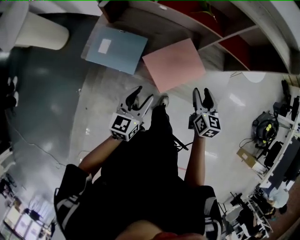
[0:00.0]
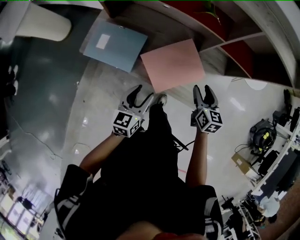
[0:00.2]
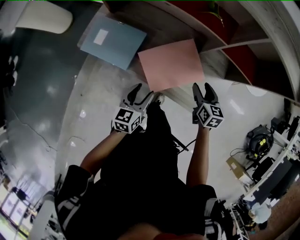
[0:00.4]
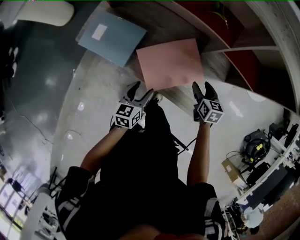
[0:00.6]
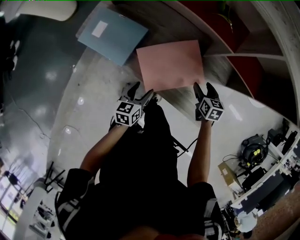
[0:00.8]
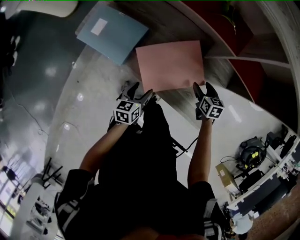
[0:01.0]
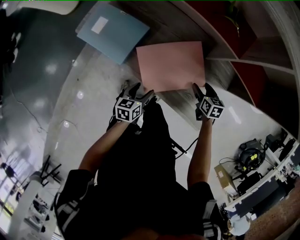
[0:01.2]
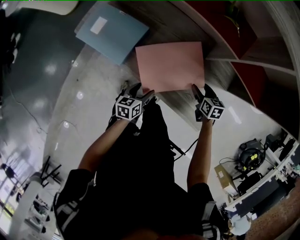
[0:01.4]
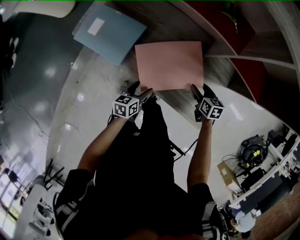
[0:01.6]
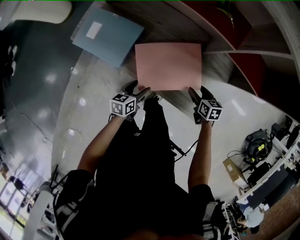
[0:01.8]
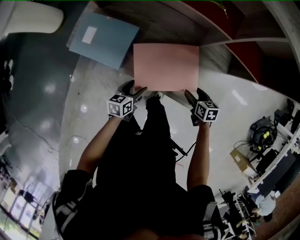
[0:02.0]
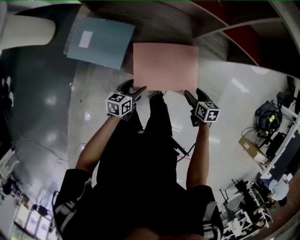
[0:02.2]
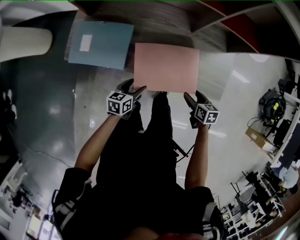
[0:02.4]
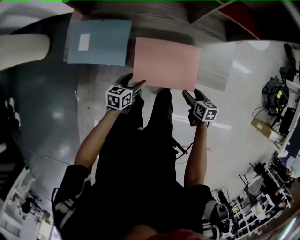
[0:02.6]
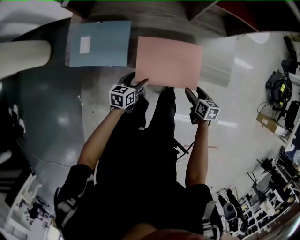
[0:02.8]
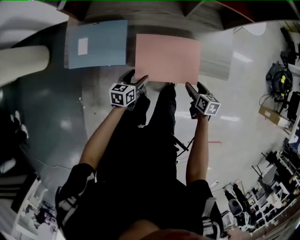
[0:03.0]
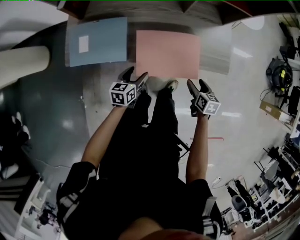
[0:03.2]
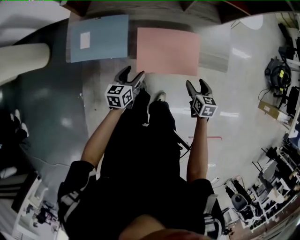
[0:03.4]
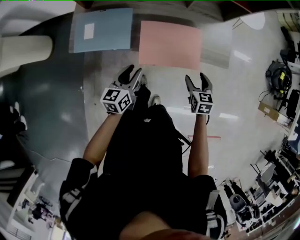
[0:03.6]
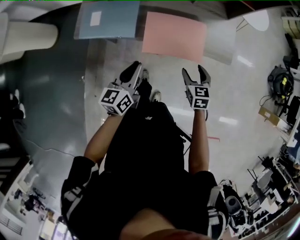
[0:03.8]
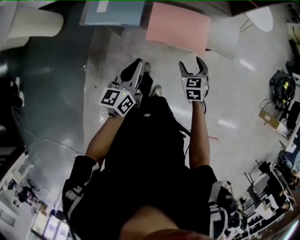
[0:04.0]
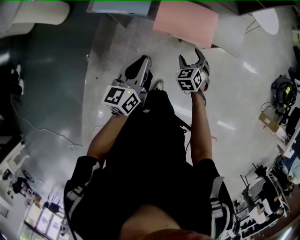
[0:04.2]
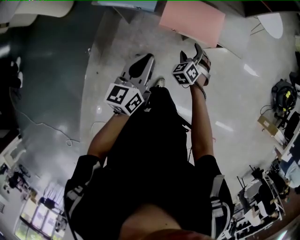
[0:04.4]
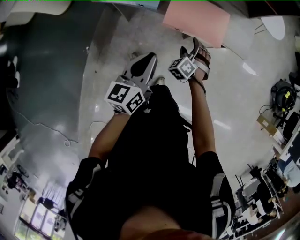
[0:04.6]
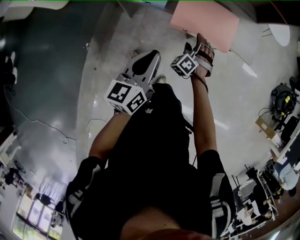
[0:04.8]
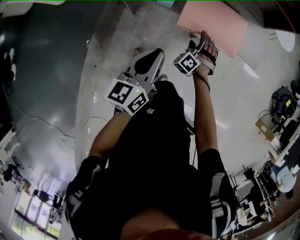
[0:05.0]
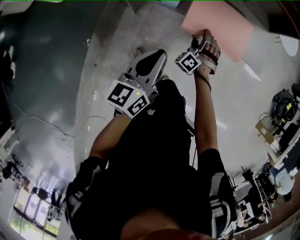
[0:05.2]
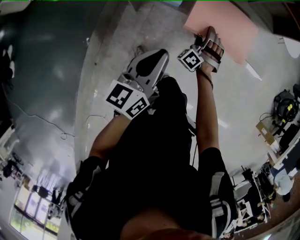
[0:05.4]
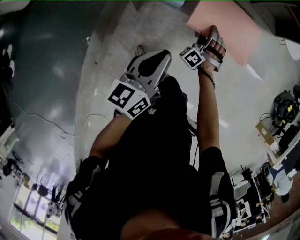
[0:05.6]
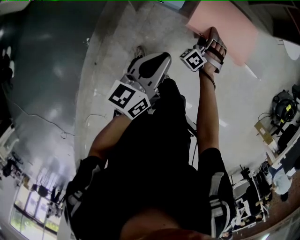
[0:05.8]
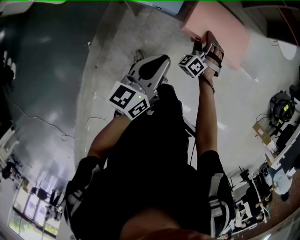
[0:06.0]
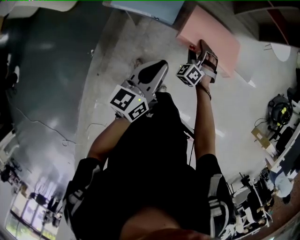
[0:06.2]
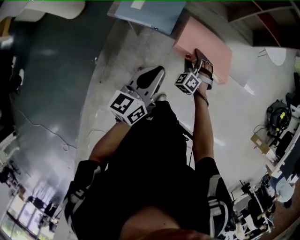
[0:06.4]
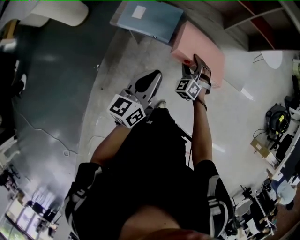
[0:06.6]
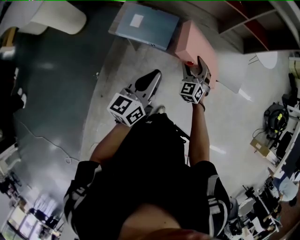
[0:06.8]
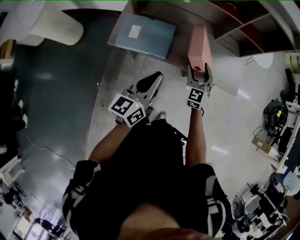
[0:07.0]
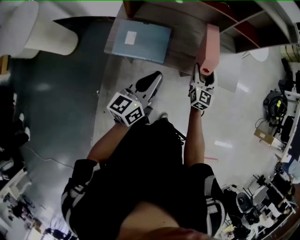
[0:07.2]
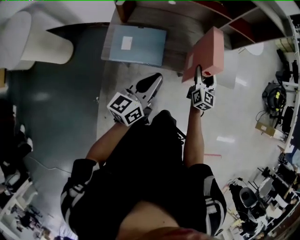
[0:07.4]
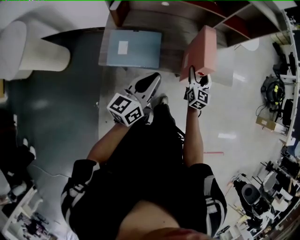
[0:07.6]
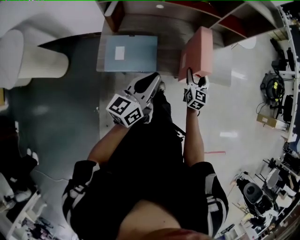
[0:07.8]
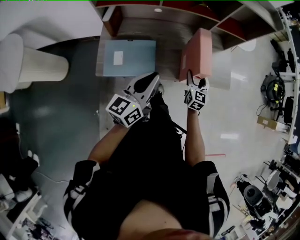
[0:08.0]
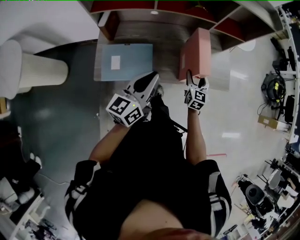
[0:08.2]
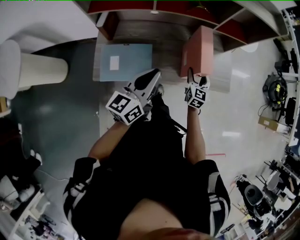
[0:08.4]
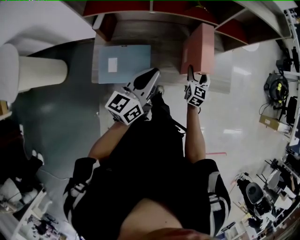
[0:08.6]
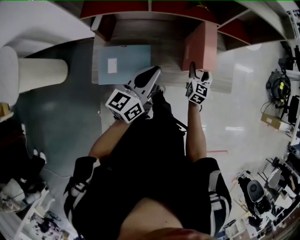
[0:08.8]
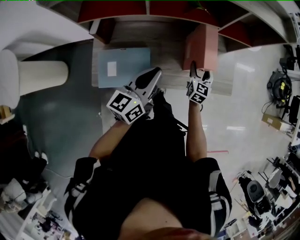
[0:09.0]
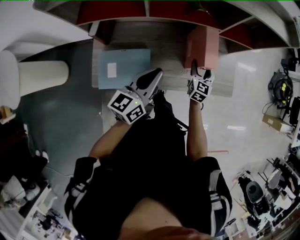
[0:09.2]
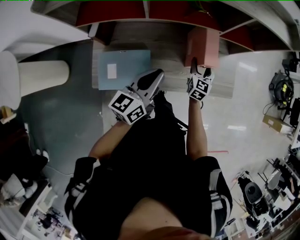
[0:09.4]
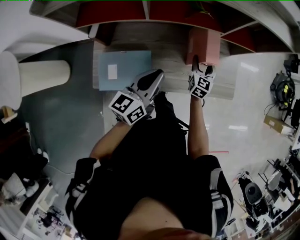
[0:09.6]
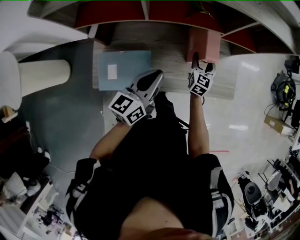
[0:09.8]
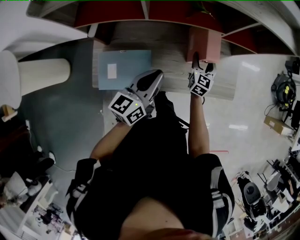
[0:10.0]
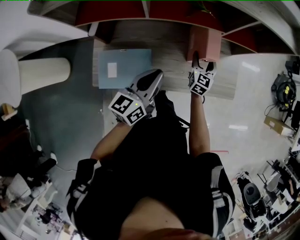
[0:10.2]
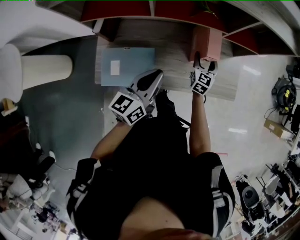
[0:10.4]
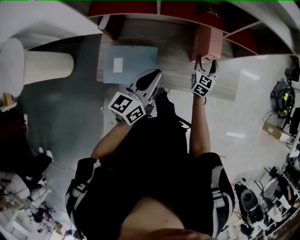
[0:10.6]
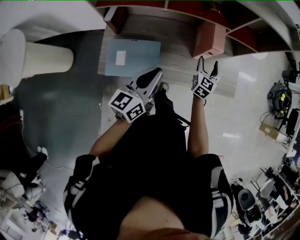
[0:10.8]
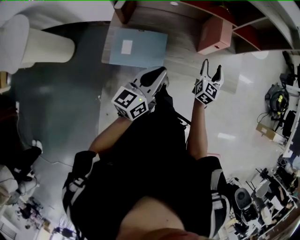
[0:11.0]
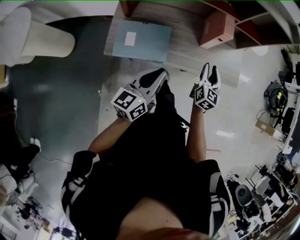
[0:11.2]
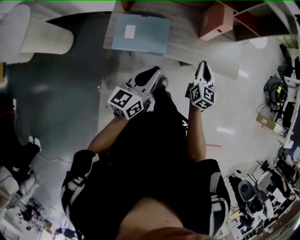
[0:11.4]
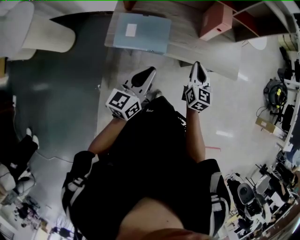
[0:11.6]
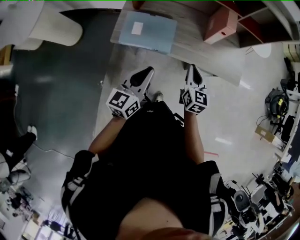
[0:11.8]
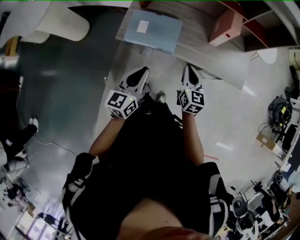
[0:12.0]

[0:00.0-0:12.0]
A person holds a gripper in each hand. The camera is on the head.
0:00.0 to 0:01.6: The two grippers go about 25 cm downward. The left gripper changes its angle by about 30 degrees, while the right gripper rotates approximately 30 degrees.
0:01.6 to 0:03.0: The left gripper moves about 10 cm, and swivels approximately 30 degrees. Meanwhile the right gripper changes place by about 25 cm, and turns by some 30 degrees.
0:03.0 to 0:04.4: The left gripper moves upward and backward, about 30 cm, turns by approximately 30 degrees, and closes up; the right gripper travels to the left and backward by about 15 cm, and twists some 70 degrees counterclockwise, seen from behind.
0:04.4 to 0:06.0: The right gripper moves to the left and forward, approximately 15 cm, and changes its angle by some 30 degrees. Meanwhile the left gripper heads to the left, covering approximately 10 cm.
0:06.0 to 0:07.6: The right gripper heads upward, covering roughly 20 cm, and twists approximately 80 degrees clockwise, seen from behind. Meanwhile the left gripper travels upward and forward by roughly 15 cm.
0:07.6 to 0:09.0: The grippers both shift forward by roughly 15 cm.
0:09.0 to 0:10.4: The right gripper is displaced forward by approximately 5 cm.
0:10.4 to 0:12.0: The grippers both shift backward by about 30 cm. The left gripper changes its angle by approximately 20 degrees. Meanwhile the right gripper swivels some 30 degrees, and closes its fingers.

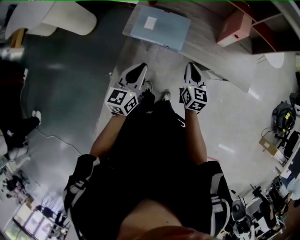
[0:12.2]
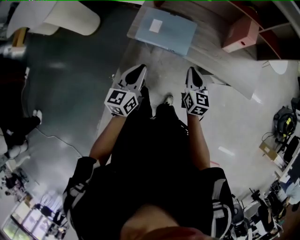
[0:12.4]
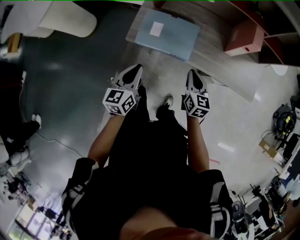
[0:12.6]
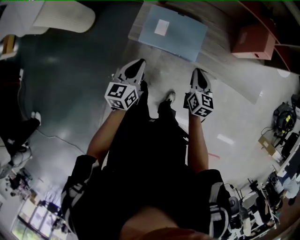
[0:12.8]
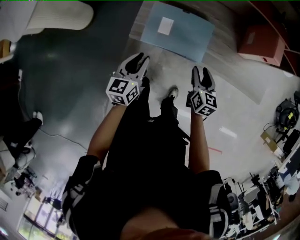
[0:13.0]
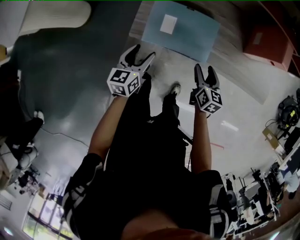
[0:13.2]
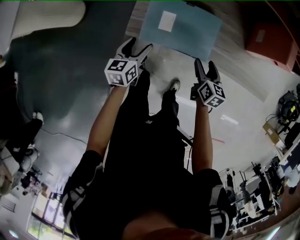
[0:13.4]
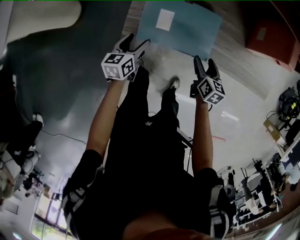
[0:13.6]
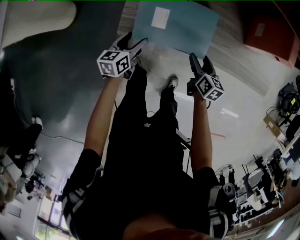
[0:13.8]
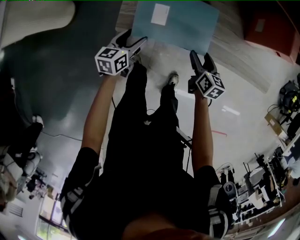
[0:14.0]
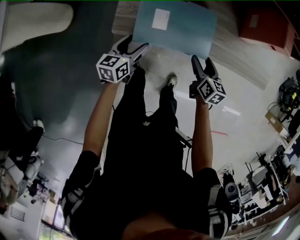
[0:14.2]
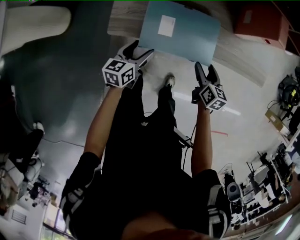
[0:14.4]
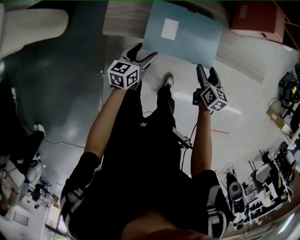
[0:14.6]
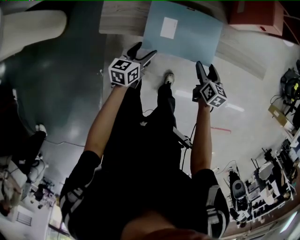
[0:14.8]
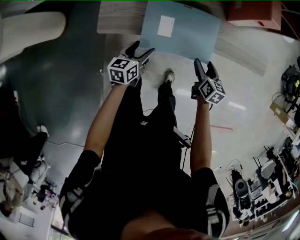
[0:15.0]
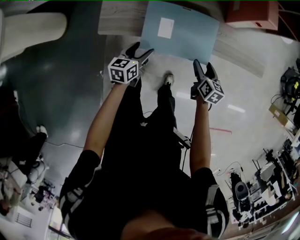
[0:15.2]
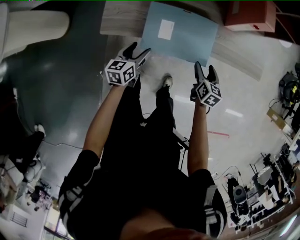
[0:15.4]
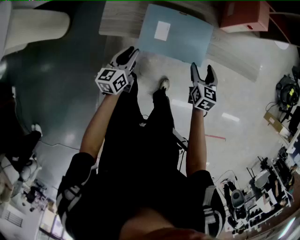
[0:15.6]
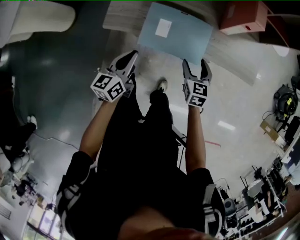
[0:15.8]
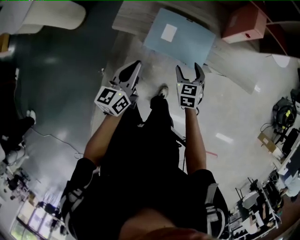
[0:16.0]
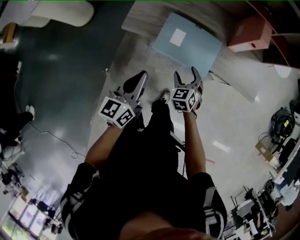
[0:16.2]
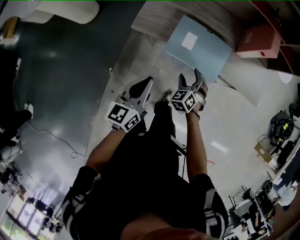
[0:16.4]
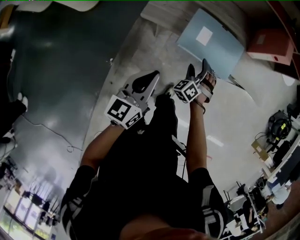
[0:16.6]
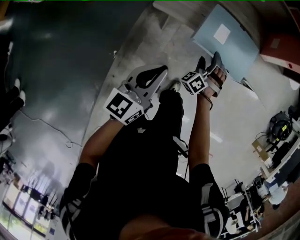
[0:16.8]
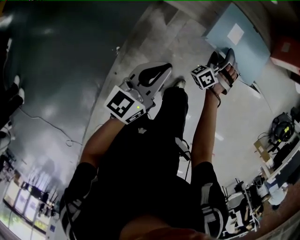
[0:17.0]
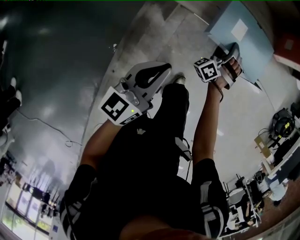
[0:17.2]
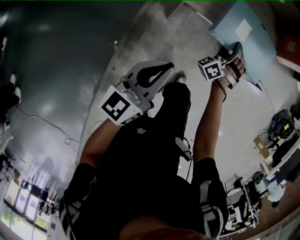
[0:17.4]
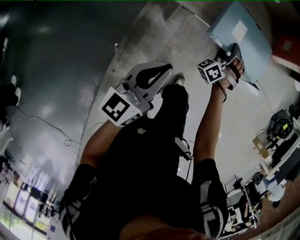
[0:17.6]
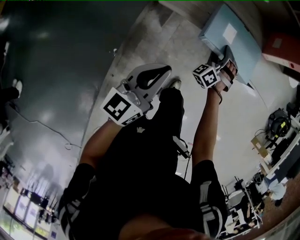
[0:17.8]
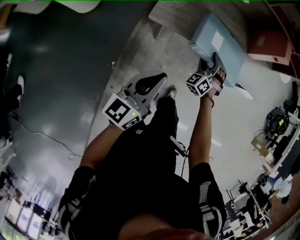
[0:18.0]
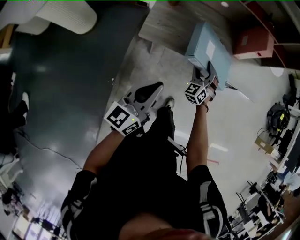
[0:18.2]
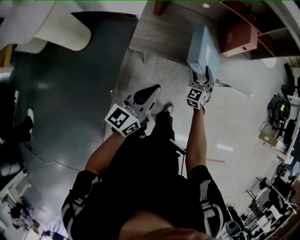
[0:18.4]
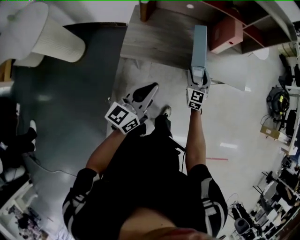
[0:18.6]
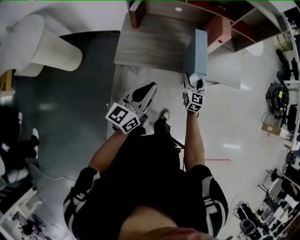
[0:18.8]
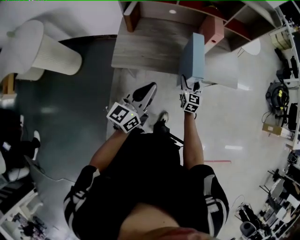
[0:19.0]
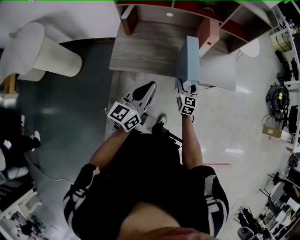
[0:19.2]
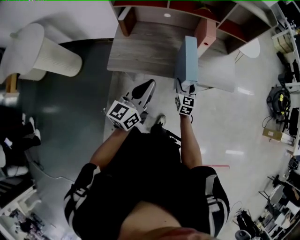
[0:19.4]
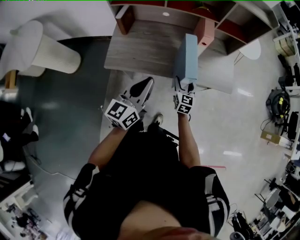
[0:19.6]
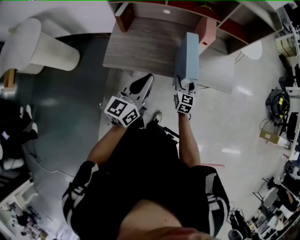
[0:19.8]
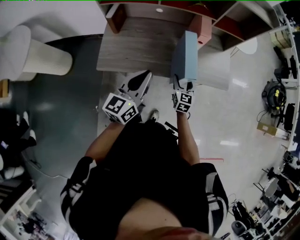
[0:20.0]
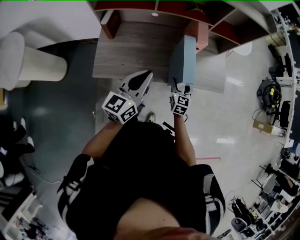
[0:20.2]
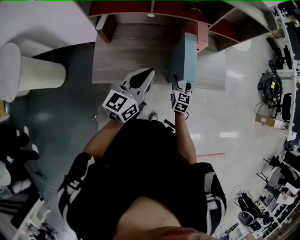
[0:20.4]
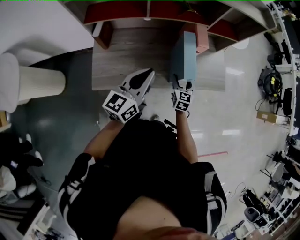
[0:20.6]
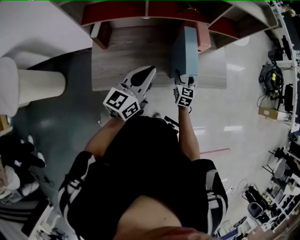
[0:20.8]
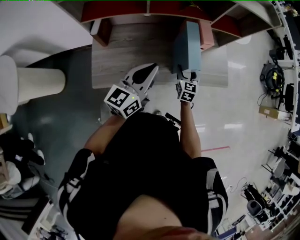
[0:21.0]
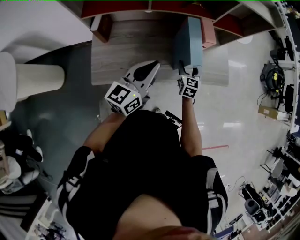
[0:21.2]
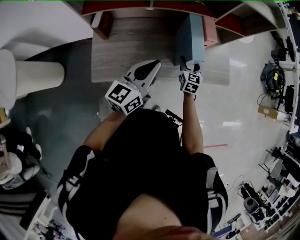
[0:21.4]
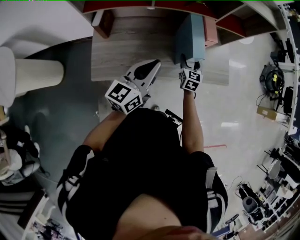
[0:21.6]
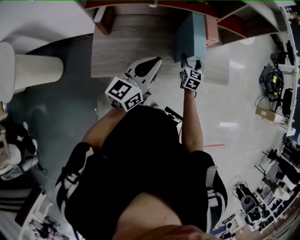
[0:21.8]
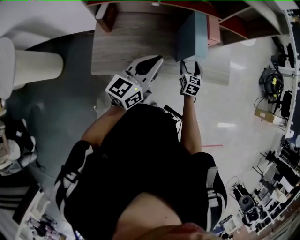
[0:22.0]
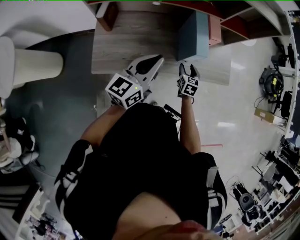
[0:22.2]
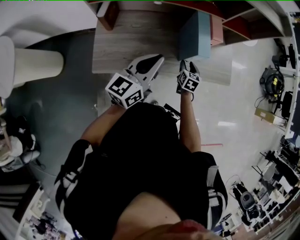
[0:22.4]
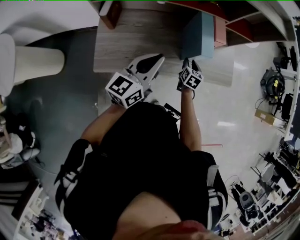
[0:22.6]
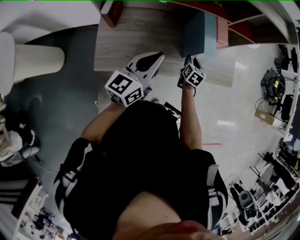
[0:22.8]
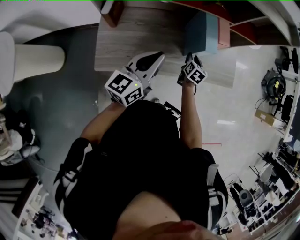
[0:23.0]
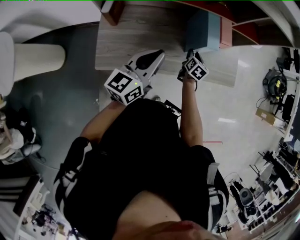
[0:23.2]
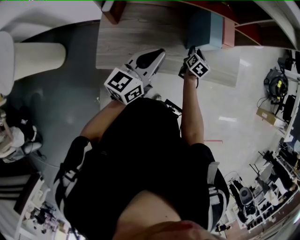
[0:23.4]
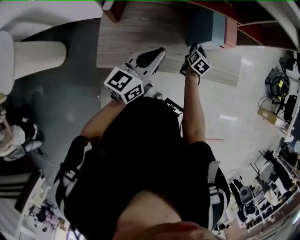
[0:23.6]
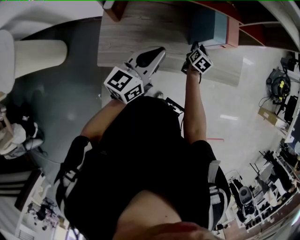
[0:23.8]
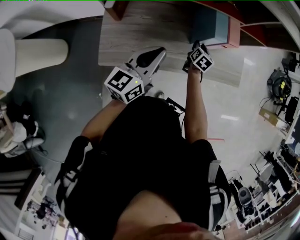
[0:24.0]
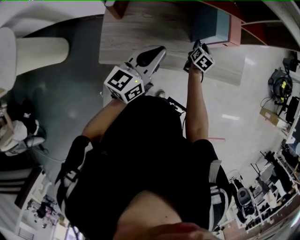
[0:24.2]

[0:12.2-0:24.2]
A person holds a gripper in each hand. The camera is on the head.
0:12.2 to 0:13.8: The left gripper goes about 35 cm downward, forward and to the left, turns by roughly 30 degrees, and opens its fingers, while the right gripper goes some 20 cm downward and forward, swivels some 30 degrees, and opens its fingers.
0:13.8 to 0:15.2: The two grippers go about 15 cm to the right.
0:15.2 to 0:16.6: The left gripper shifts roughly 25 cm upward and backward, swivels about 30 degrees, and closes up. Meanwhile the right gripper goes approximately 15 cm to the left, and rolls counterclockwise, seen from behind, by some 90 degrees.
0:16.6 to 0:18.2: The grippers both shift upward by approximately 10 cm. The right gripper rotates approximately 20 degrees.
0:18.2 to 0:19.8: The right gripper shifts some 15 cm to the right, and rolls clockwise, seen from behind, by roughly 50 degrees, while the left gripper goes approximately 20 cm forward, to the right and upward.
0:19.8 to 0:21.2: Both grippers move forward, about 15 cm.
0:21.2 to 0:22.6: The right gripper travels downward by roughly 5 cm.
0:22.6 to 0:24.2: The right gripper is displaced forward by roughly 5 cm.
